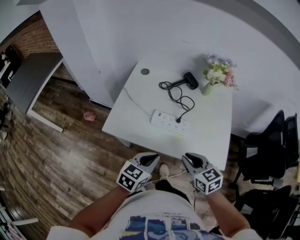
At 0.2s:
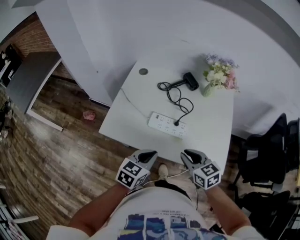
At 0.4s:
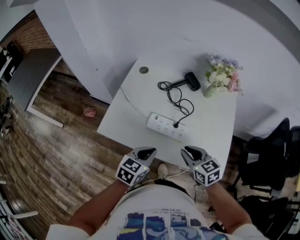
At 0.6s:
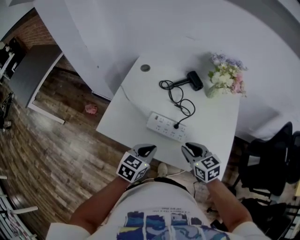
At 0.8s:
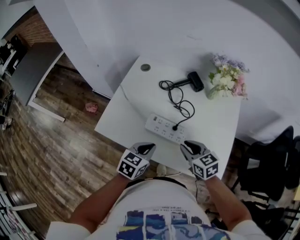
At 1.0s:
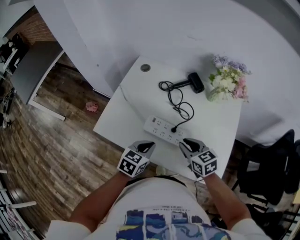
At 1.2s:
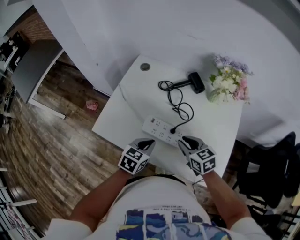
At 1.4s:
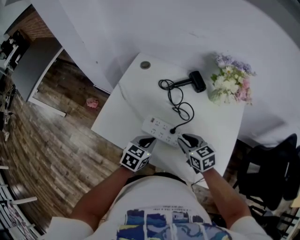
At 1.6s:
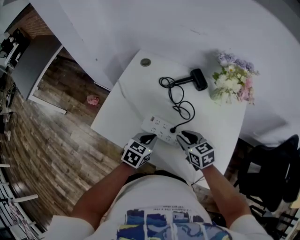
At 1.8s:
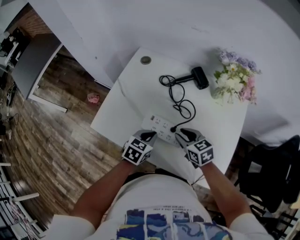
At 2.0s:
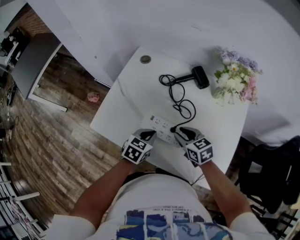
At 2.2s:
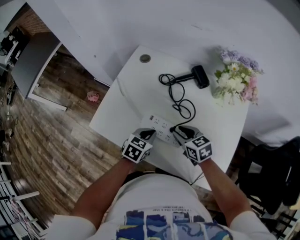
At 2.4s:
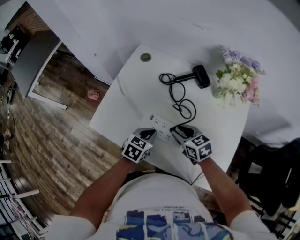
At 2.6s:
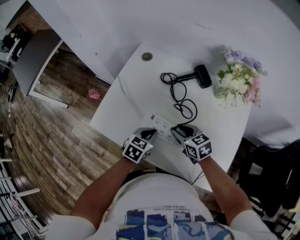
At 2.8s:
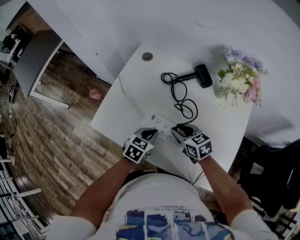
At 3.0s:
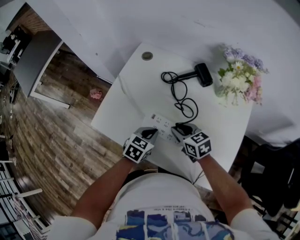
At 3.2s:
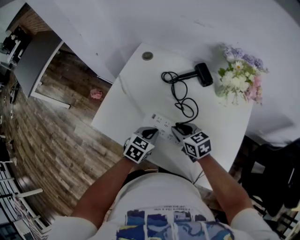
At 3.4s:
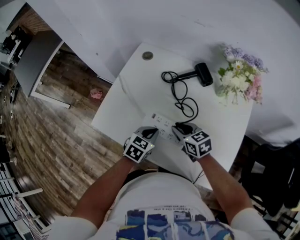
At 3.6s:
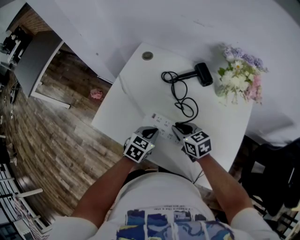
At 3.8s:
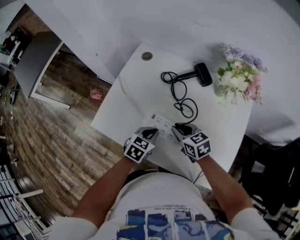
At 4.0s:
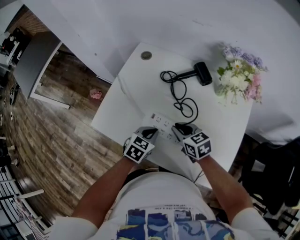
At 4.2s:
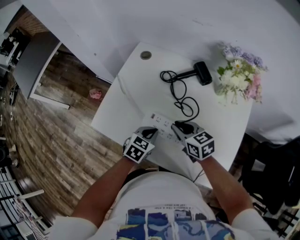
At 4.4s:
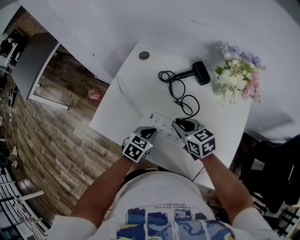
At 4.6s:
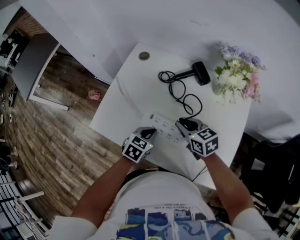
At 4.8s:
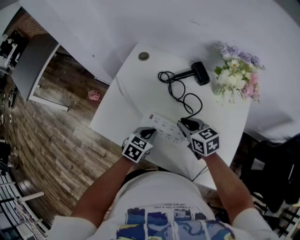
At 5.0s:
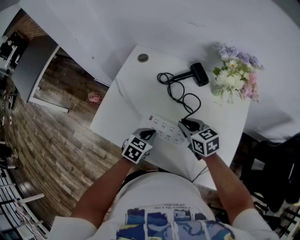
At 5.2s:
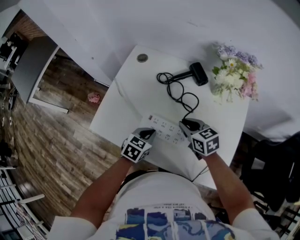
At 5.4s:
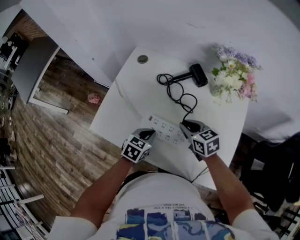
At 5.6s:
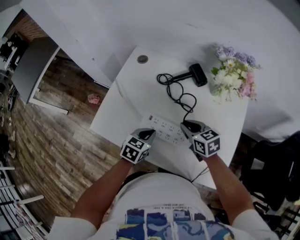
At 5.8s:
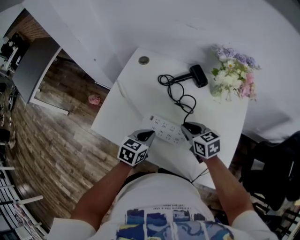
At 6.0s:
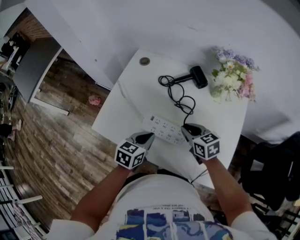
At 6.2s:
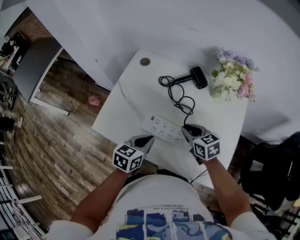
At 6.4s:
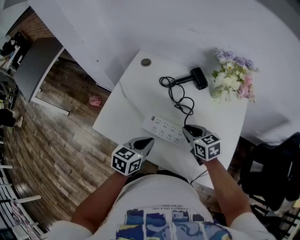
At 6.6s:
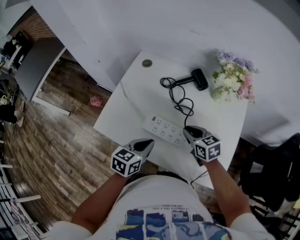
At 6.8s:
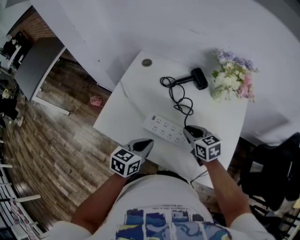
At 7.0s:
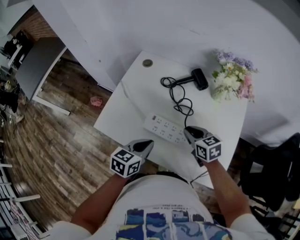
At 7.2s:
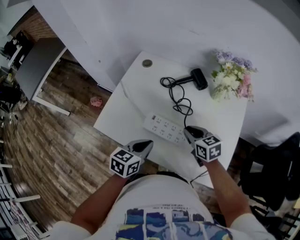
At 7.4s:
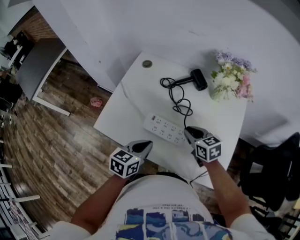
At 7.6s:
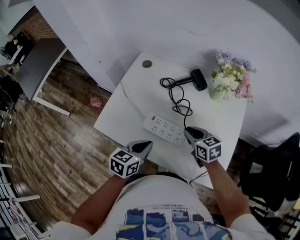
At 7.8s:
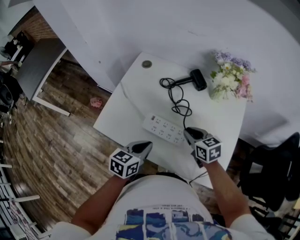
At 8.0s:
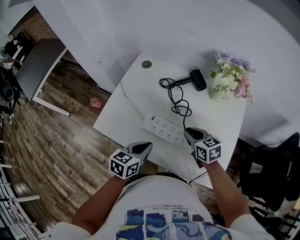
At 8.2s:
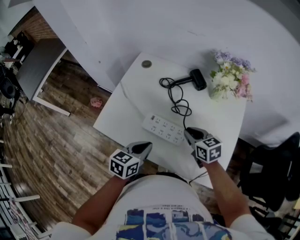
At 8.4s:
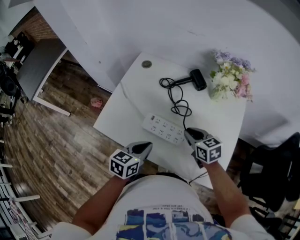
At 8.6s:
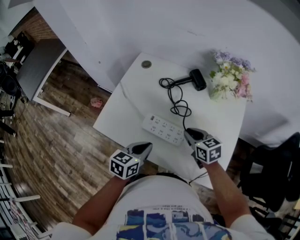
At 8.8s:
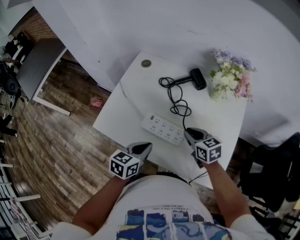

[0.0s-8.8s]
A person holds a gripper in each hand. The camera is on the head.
0.0s to 1.4s: Both grippers move forward and downward, some 20 cm.
1.4s to 3.0s: The right gripper ends up some 5 cm from where it was. The left gripper moves some 5 cm.
3.0s to 5.8s: The grippers move only a little.
5.8s to 7.4s: The left gripper travels backward and upward by roughly 10 cm.
7.4s to 8.8s: Neither gripper changes place.

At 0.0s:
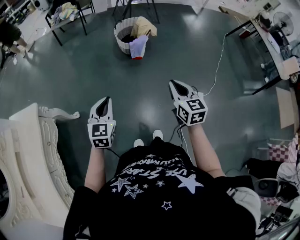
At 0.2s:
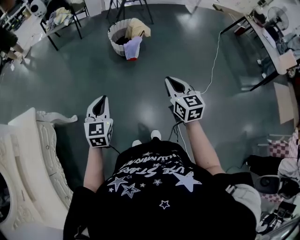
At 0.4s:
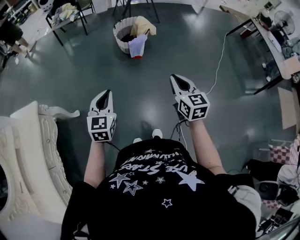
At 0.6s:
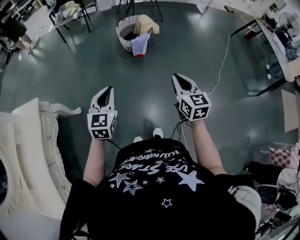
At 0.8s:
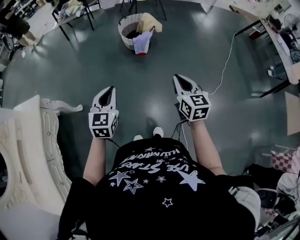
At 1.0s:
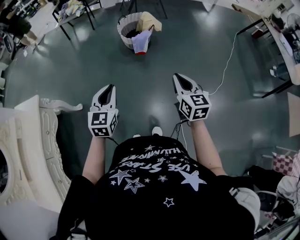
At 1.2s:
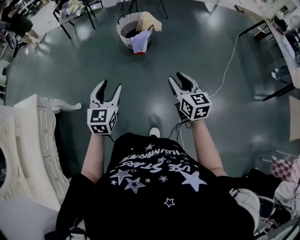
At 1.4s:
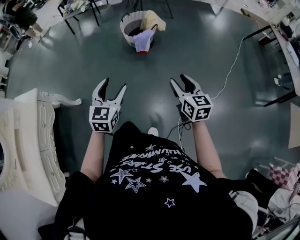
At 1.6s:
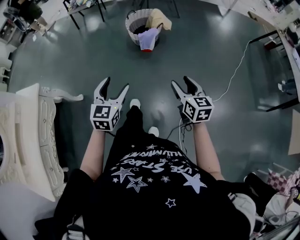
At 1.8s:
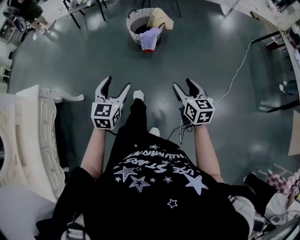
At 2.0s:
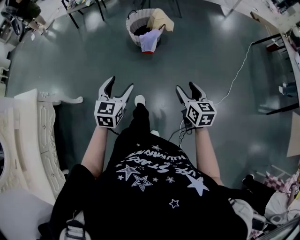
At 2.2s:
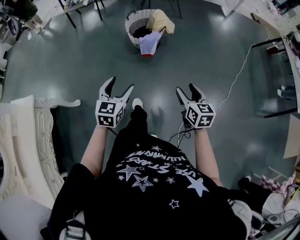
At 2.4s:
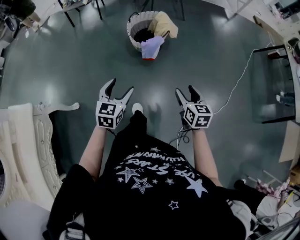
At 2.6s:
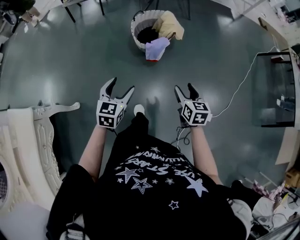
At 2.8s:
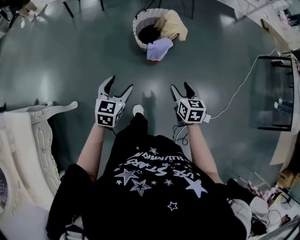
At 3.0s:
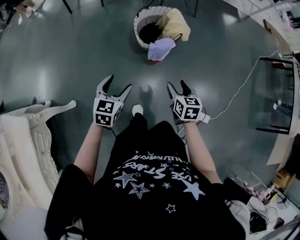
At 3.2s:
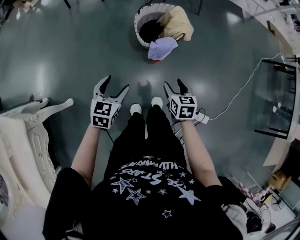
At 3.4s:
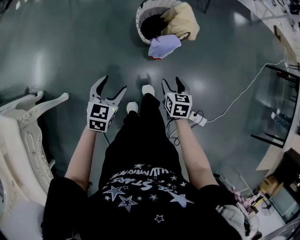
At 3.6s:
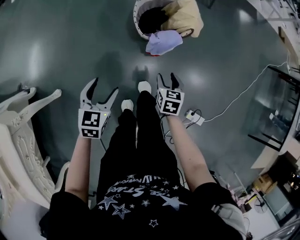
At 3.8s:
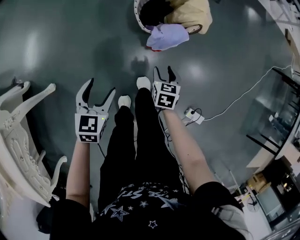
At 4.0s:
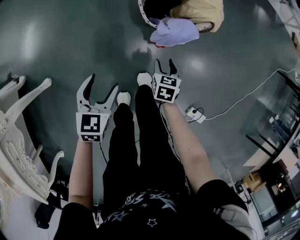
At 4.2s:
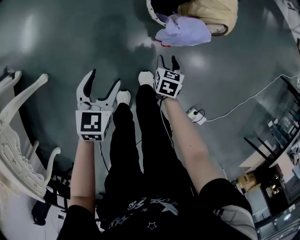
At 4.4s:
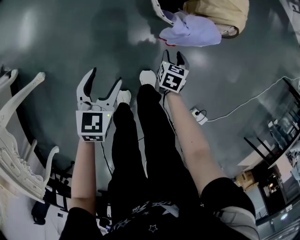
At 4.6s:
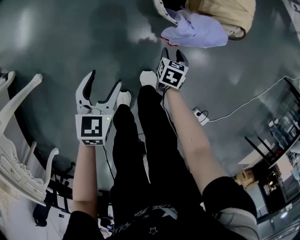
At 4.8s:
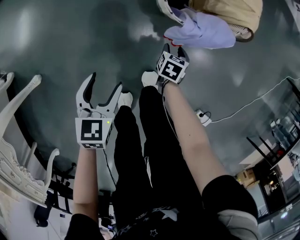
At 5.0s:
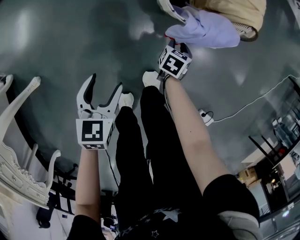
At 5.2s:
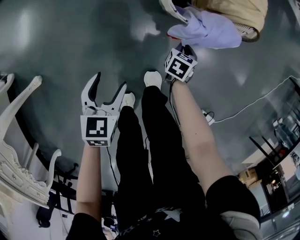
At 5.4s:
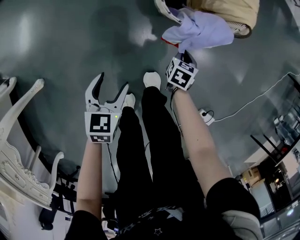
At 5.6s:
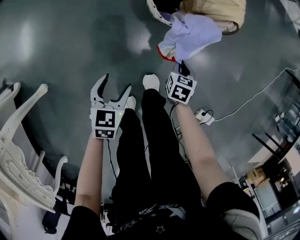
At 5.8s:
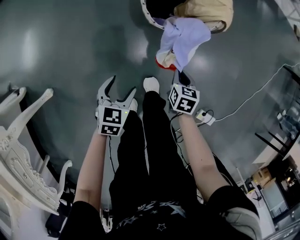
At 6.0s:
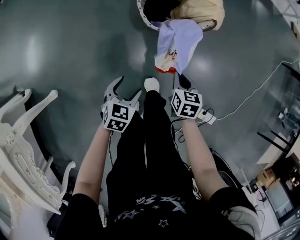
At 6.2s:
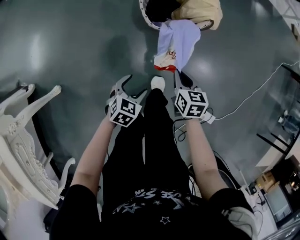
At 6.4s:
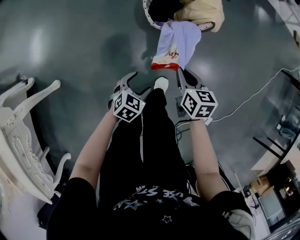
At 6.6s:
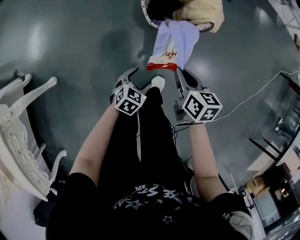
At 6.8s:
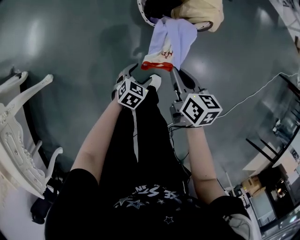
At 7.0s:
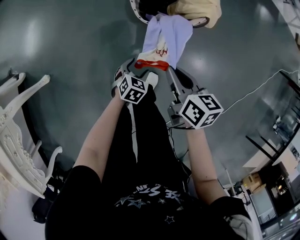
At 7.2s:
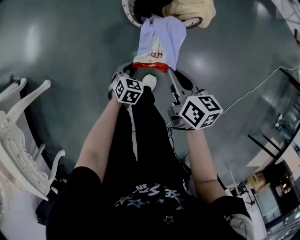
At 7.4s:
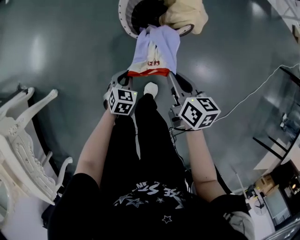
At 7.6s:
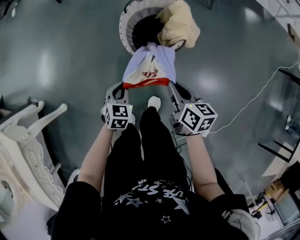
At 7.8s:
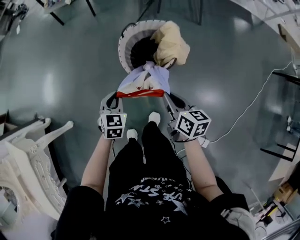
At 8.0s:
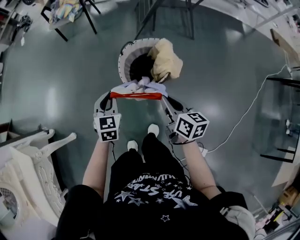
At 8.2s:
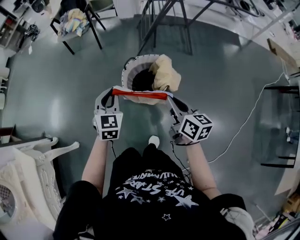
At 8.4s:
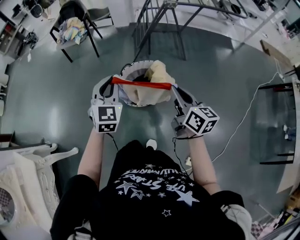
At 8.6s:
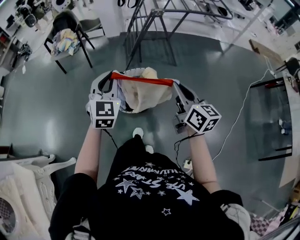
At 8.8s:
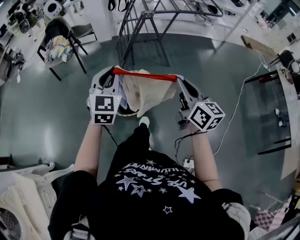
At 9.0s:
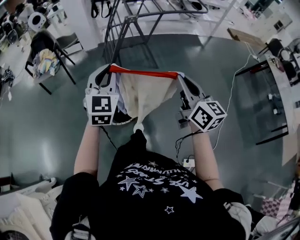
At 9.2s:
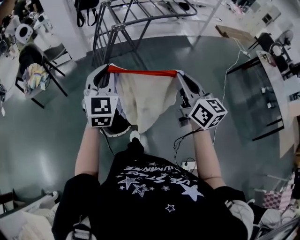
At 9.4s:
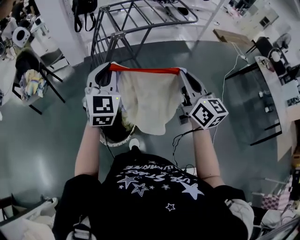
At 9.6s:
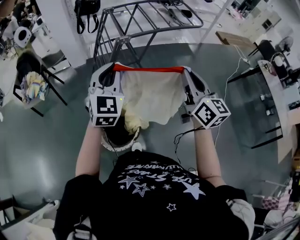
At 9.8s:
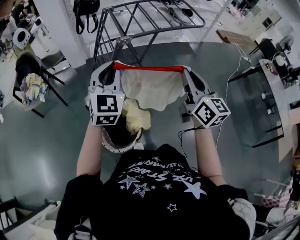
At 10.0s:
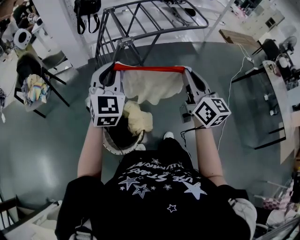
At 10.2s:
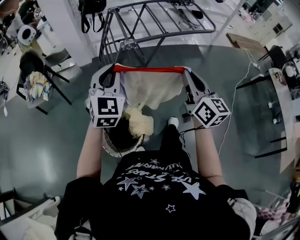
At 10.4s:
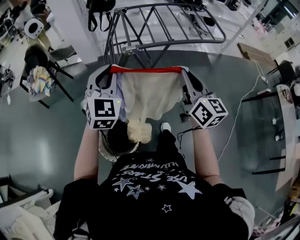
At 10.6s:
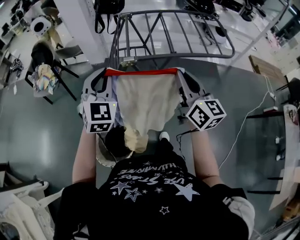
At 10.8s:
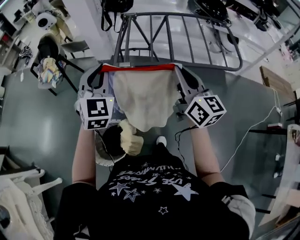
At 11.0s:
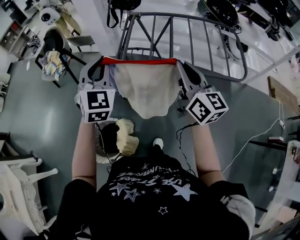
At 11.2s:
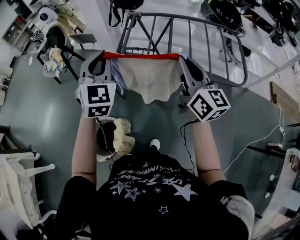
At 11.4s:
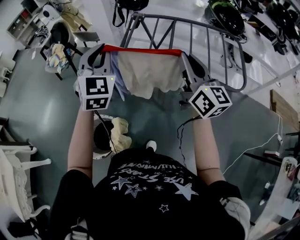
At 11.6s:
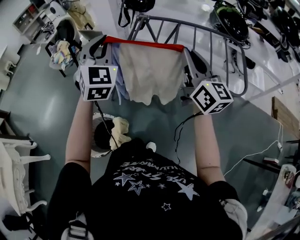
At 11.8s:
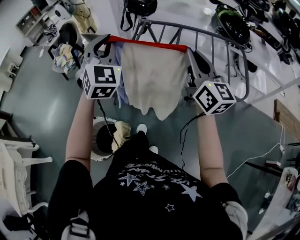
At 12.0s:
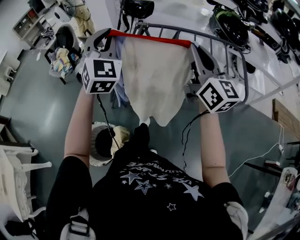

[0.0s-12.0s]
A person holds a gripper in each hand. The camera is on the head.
0.0s to 1.6s: The two grippers go some 15 cm to the right. The right gripper opens its fingers, while the left gripper opens up.
1.6s to 3.0s: Both grippers travel together forward and downward, about 40 cm. The right gripper changes its angle by approximately 20 degrees.
3.0s to 4.4s: The left gripper travels downward by about 35 cm, and swivels approximately 20 degrees, while the right gripper shifts roughly 50 cm downward and forward, and swivels about 20 degrees.
4.4s to 6.0s: The left gripper heads to the right, covering some 10 cm, and swivels about 20 degrees. The right gripper moves upward, some 15 cm, and closes.
6.0s to 7.6s: The right gripper moves upward, about 20 cm, and rotates some 30 degrees; the left gripper shifts by roughly 15 cm, and closes up.
7.6s to 9.0s: The left gripper moves upward, some 50 cm, and angles its fingers upward, by about 40 degrees; the right gripper travels upward and to the right by roughly 50 cm, and tilts its fingers about 30 degrees upward.
9.0s to 10.4s: Both grippers move forward, some 30 cm.
10.4s to 12.0s: The right gripper changes place by roughly 35 cm, and rotates roughly 30 degrees. The left gripper shifts by approximately 30 cm, and swivels approximately 30 degrees.

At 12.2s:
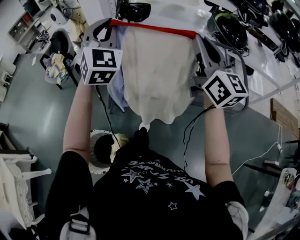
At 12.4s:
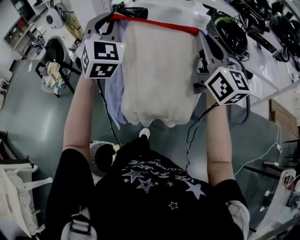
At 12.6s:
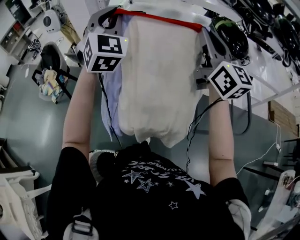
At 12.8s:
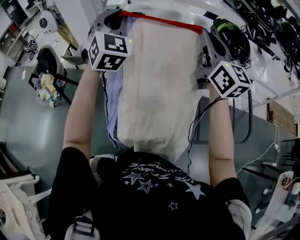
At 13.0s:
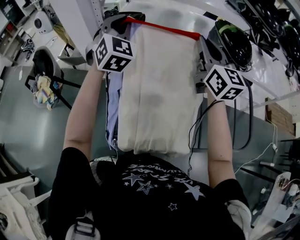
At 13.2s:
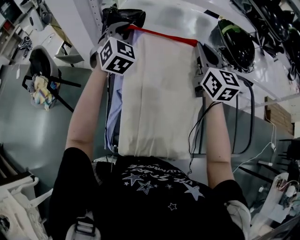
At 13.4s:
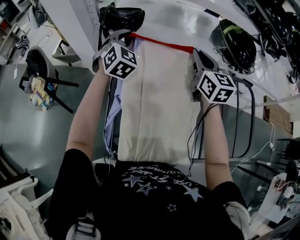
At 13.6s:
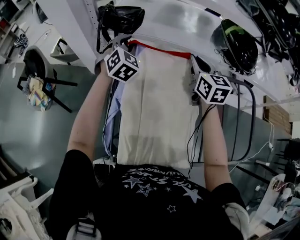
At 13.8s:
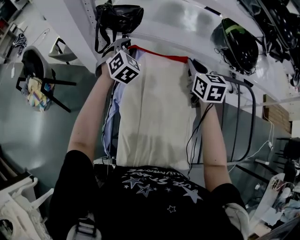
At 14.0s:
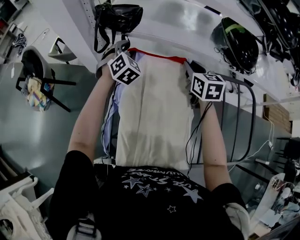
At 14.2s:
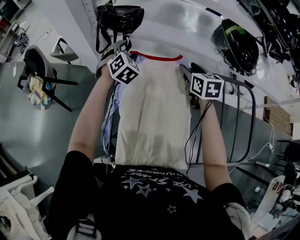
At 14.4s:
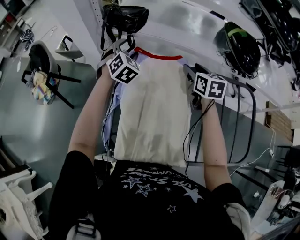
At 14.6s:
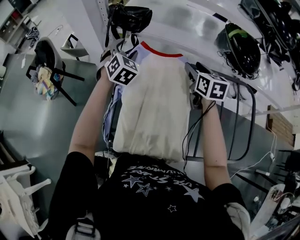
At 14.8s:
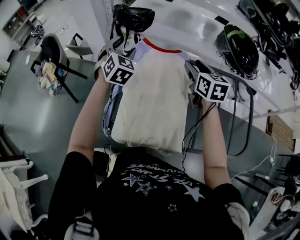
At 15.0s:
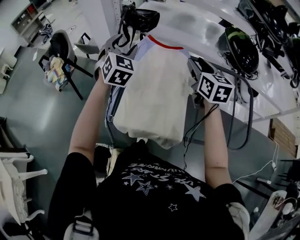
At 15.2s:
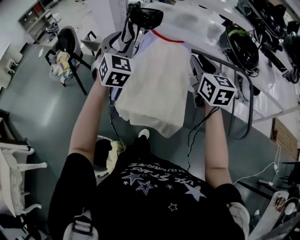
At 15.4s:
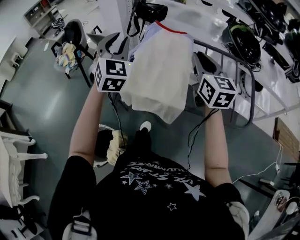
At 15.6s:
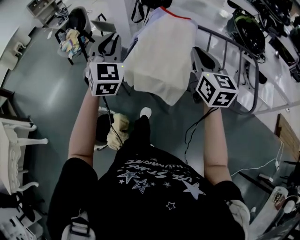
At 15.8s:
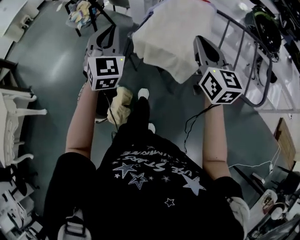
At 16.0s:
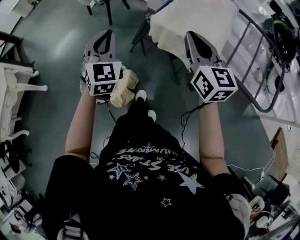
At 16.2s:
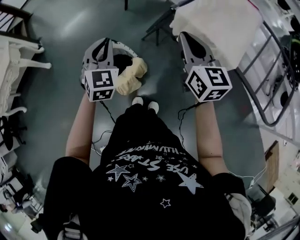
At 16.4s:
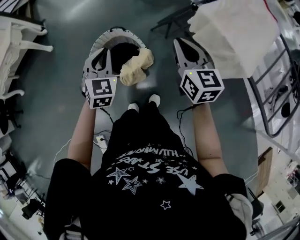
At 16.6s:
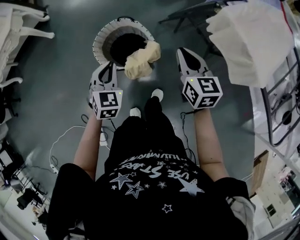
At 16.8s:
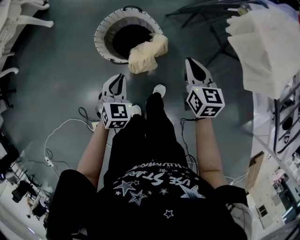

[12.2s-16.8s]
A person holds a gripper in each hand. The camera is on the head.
12.2s to 13.8s: The two grippers go approximately 50 cm forward and downward. The left gripper angles its fingers downward, by some 30 degrees, while the right gripper tips its fingers downward by approximately 40 degrees.
13.8s to 15.2s: The two grippers go about 30 cm backward and upward. The right gripper opens up. Meanwhile the left gripper turns by roughly 30 degrees.
15.2s to 16.8s: Both grippers are carried approximately 60 cm. The right gripper changes its angle by about 50 degrees, and closes up; the left gripper tilts its fingers about 40 degrees downward, and closes up.
